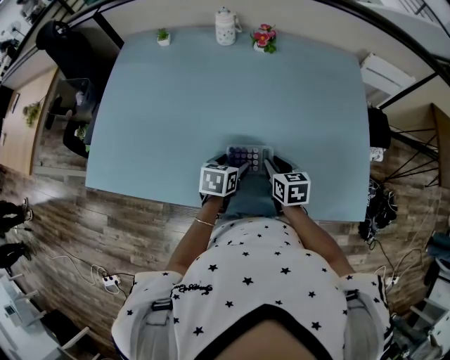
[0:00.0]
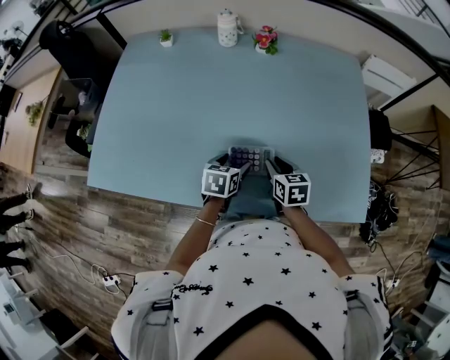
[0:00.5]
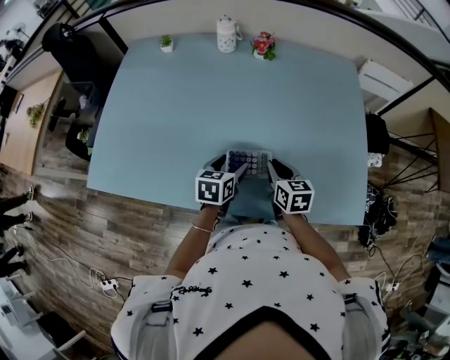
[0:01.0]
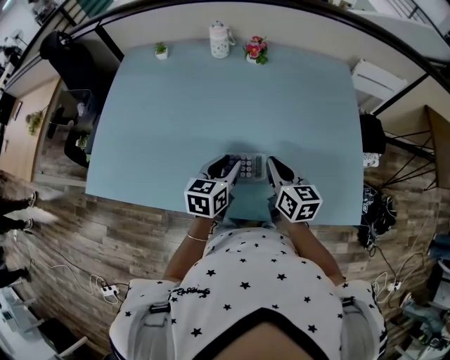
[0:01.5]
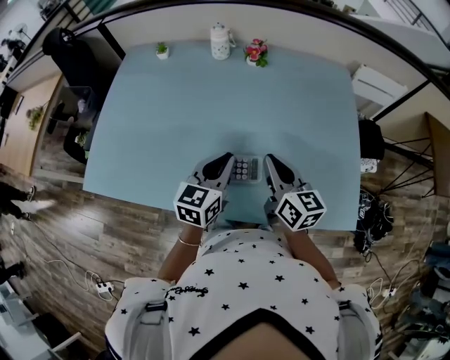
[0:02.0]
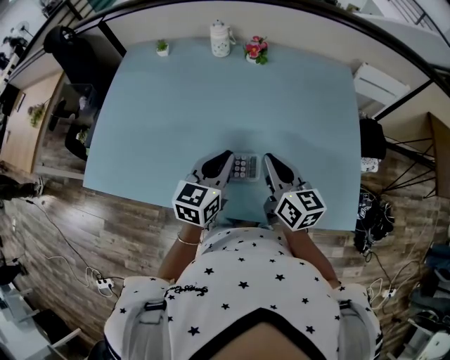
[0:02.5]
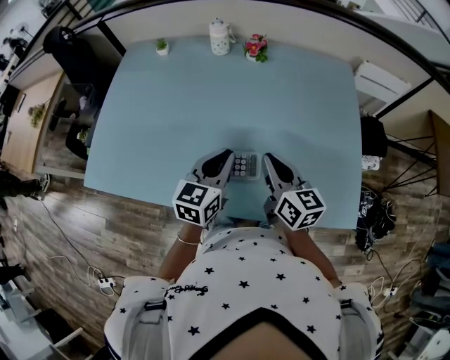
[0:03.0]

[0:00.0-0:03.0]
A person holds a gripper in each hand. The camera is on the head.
0:00.0 to 0:01.5: Both grippers move upward, some 10 cm. The right gripper changes its angle by about 20 degrees, and closes up. Meanwhile the left gripper changes its angle by some 20 degrees, and closes up.
0:01.5 to 0:03.0: The grippers both shift upward by about 5 cm. The left gripper closes up.

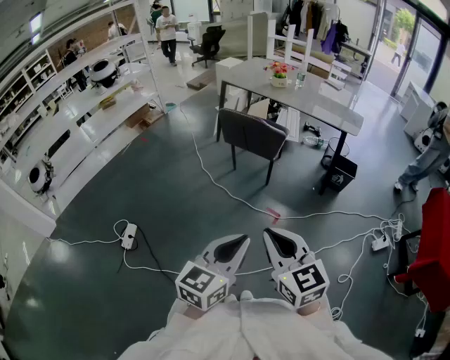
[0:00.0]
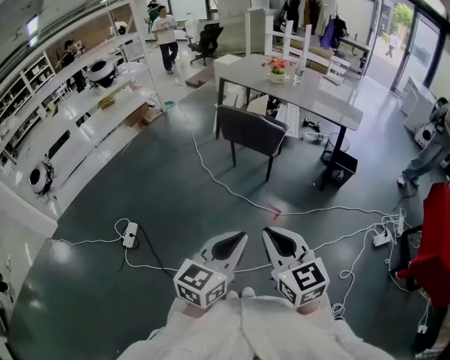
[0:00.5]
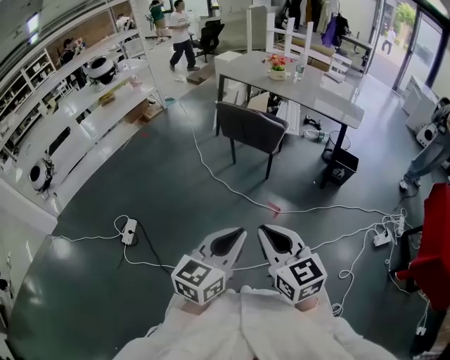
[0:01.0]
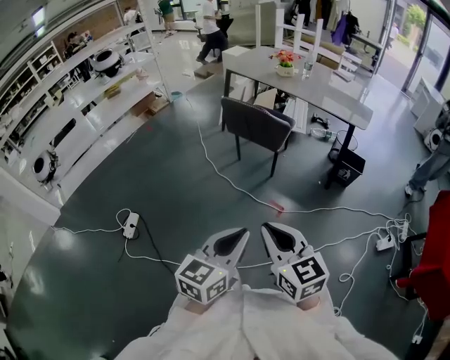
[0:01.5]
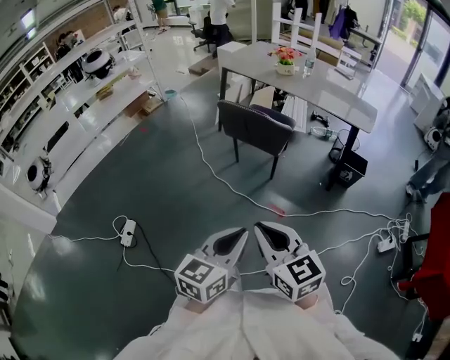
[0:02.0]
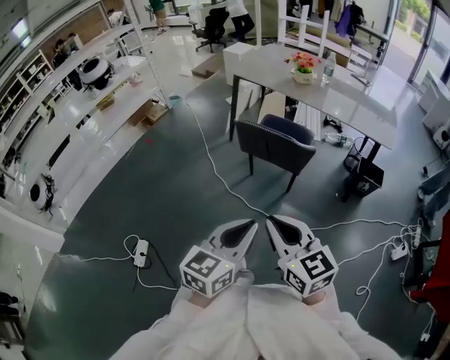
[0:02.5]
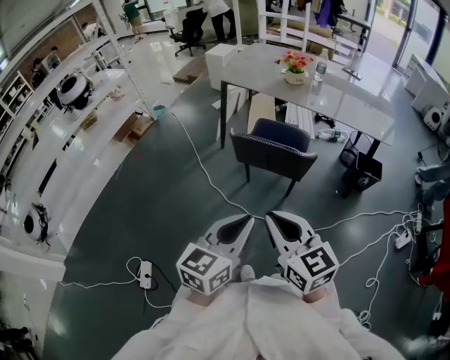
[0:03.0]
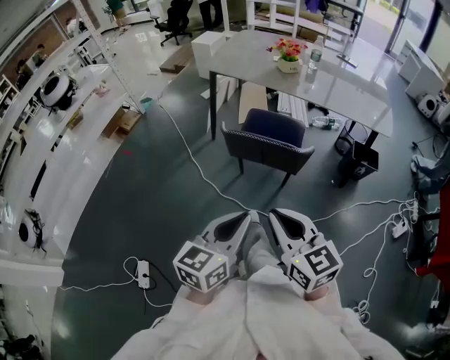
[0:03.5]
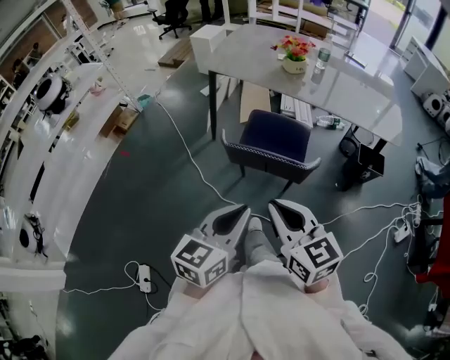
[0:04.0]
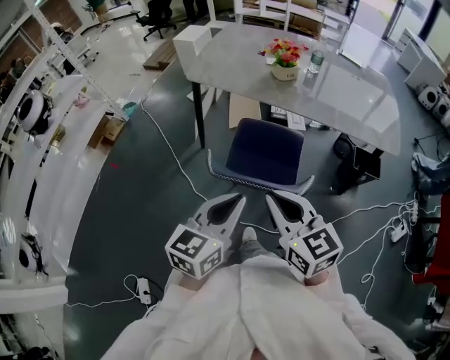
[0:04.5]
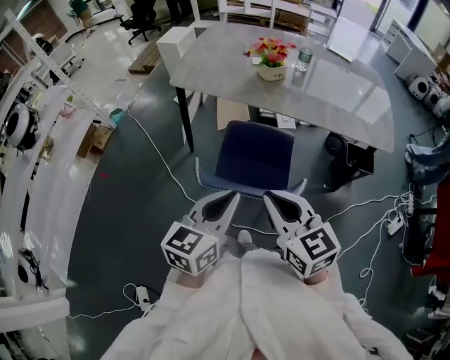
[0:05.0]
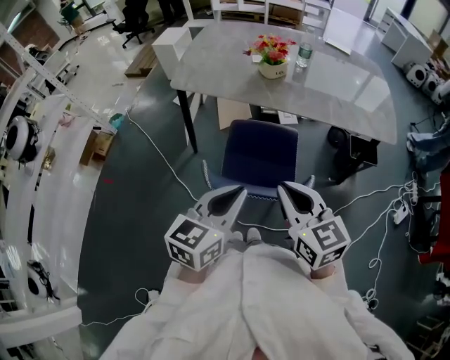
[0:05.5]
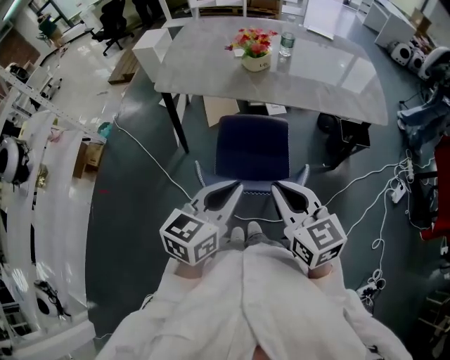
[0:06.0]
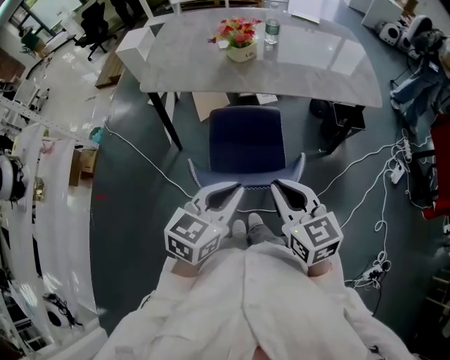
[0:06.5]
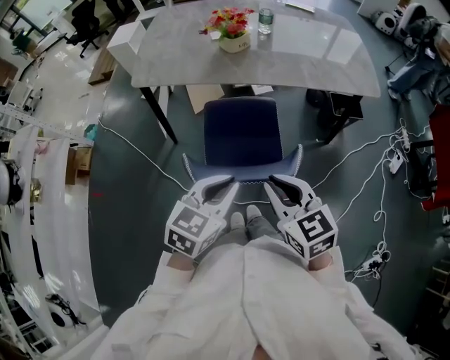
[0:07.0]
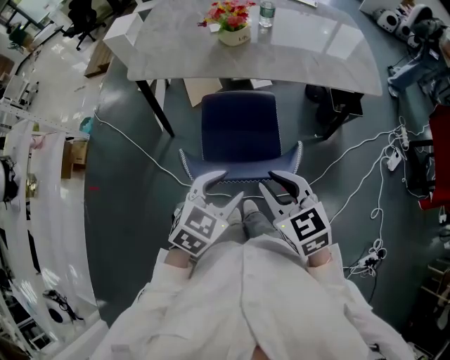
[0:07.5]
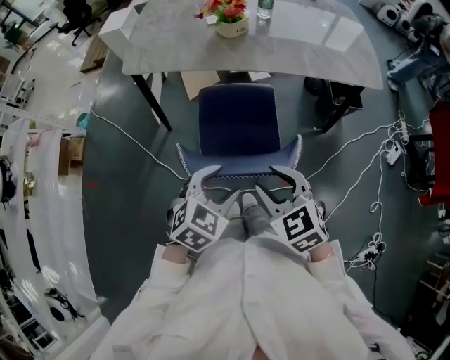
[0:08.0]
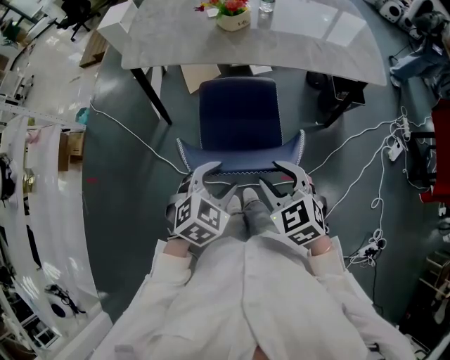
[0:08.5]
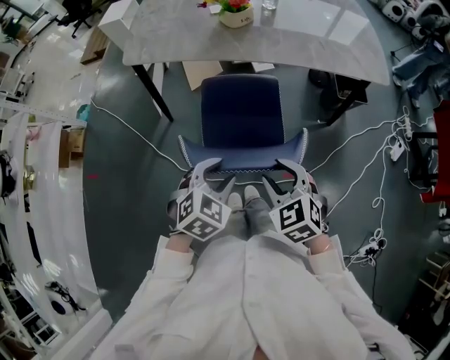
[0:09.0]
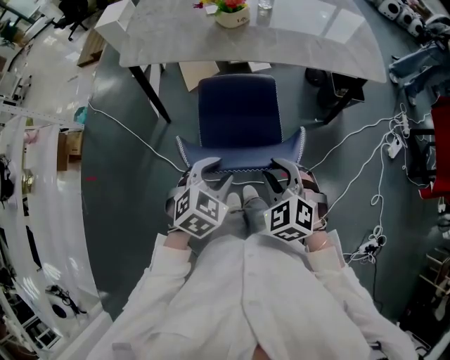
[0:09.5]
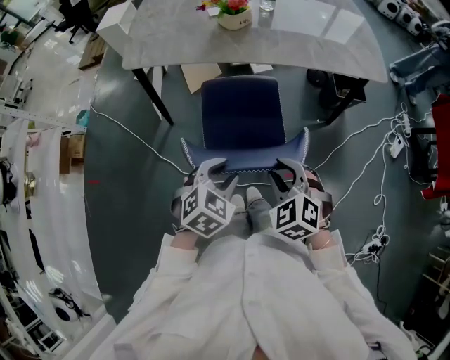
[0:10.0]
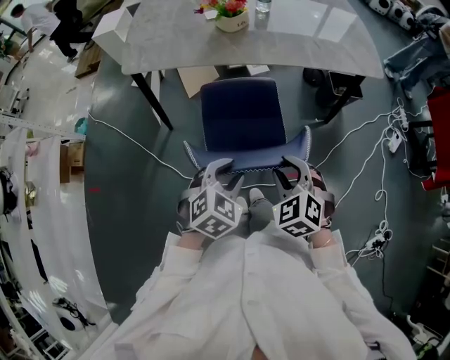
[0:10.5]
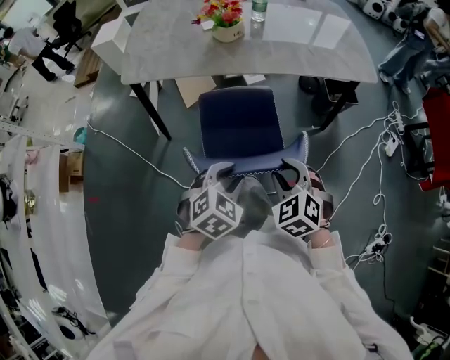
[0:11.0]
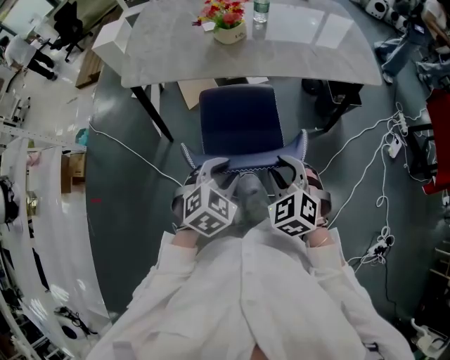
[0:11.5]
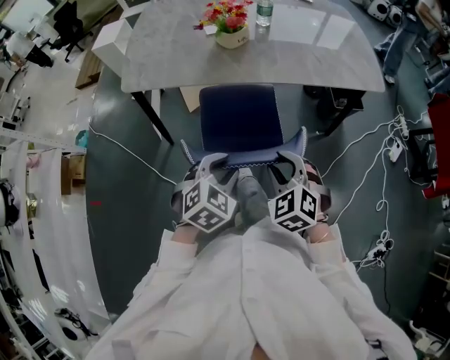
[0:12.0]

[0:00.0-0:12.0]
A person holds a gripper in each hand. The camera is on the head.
0:00.0 to 0:02.0: Both grippers move forward, about 10 cm.
0:02.0 to 0:04.0: Both grippers are carried forward, approximately 40 cm.
0:04.0 to 0:06.0: The grippers both shift forward by about 20 cm.
0:06.0 to 0:08.0: Both grippers travel together downward, about 10 cm. The right gripper turns by about 30 degrees, and opens, while the left gripper turns by roughly 40 degrees, and opens up.
0:08.0 to 0:10.0: The right gripper is displaced downward by approximately 5 cm, and rotates about 20 degrees.
0:10.0 to 0:12.0: The two grippers go approximately 5 cm forward.

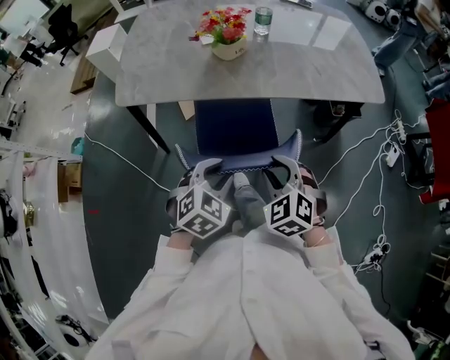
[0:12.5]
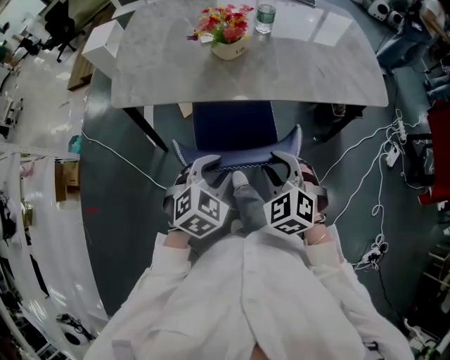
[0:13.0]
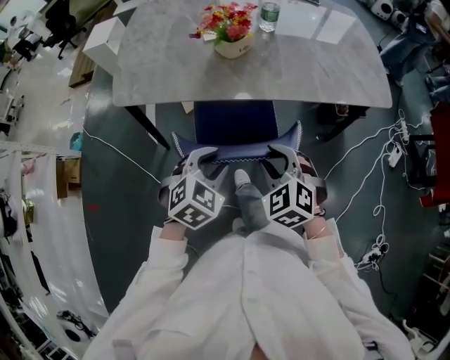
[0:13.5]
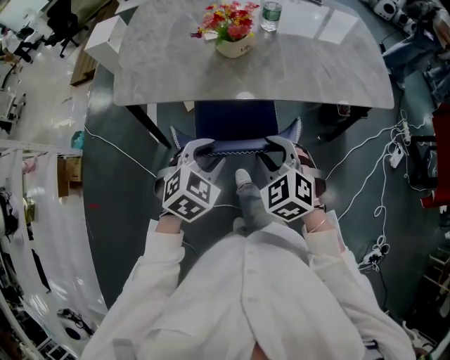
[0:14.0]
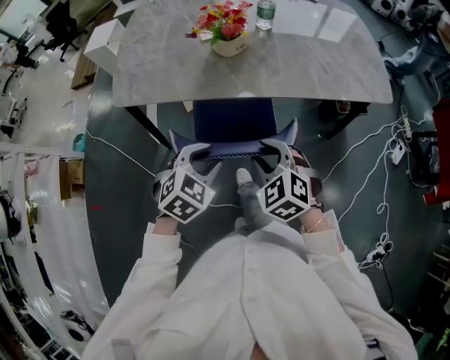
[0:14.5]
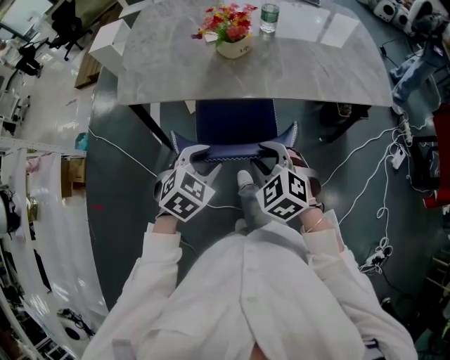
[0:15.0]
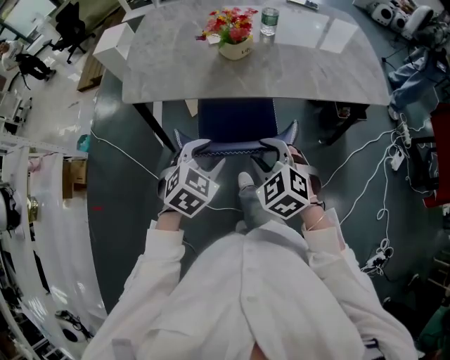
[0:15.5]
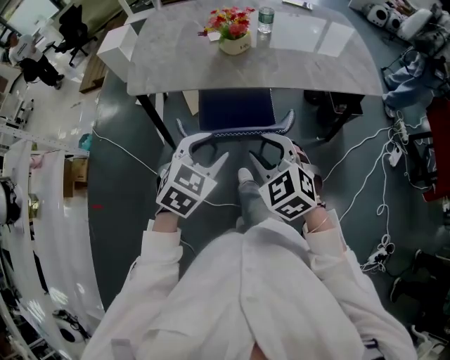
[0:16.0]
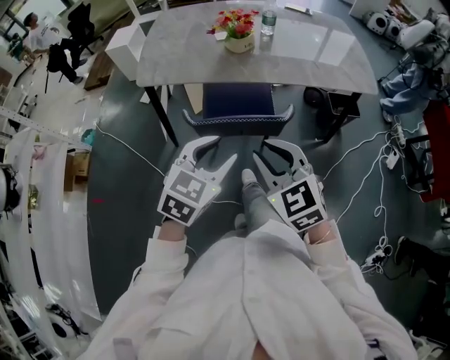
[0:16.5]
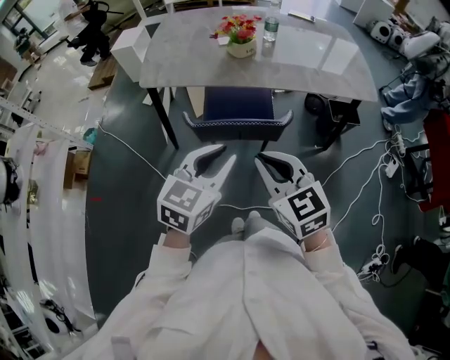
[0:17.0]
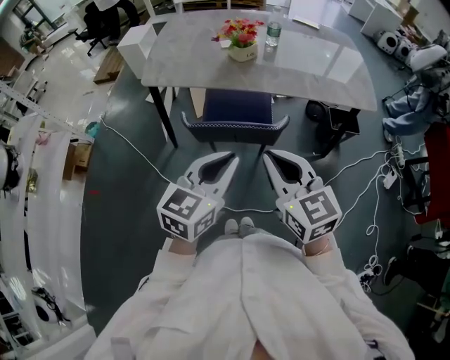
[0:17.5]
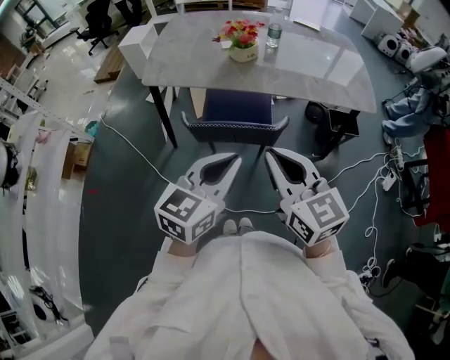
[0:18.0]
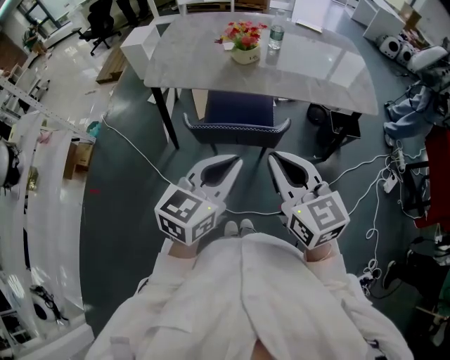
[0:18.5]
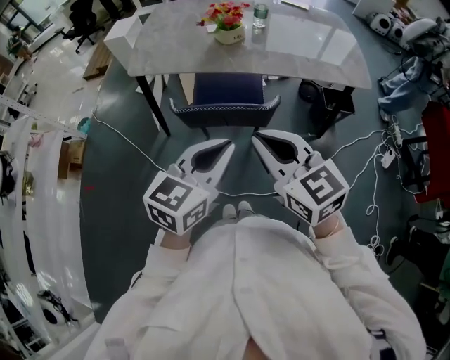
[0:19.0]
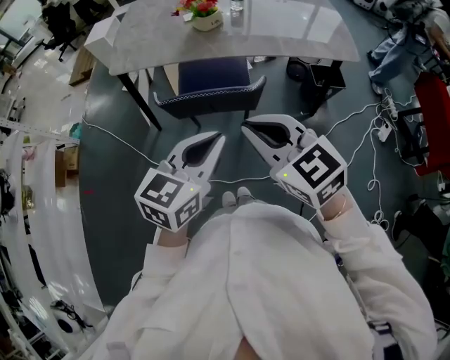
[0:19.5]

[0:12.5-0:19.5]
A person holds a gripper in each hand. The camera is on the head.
0:12.5 to 0:14.5: Both grippers move forward, some 5 cm.
0:14.5 to 0:16.0: The right gripper shifts approximately 10 cm backward and upward. Meanwhile the left gripper travels upward and backward by roughly 10 cm.
0:16.0 to 0:17.5: The right gripper is displaced upward and backward by about 15 cm, swivels some 30 degrees, and closes its fingers. The left gripper moves backward, upward and to the right, roughly 15 cm, swivels approximately 30 degrees, and closes its fingers.
0:17.5 to 0:19.5: There are only small adjustments of the grippers.

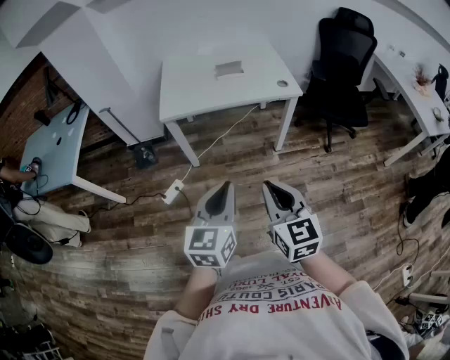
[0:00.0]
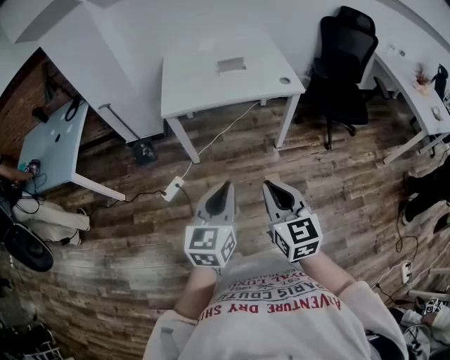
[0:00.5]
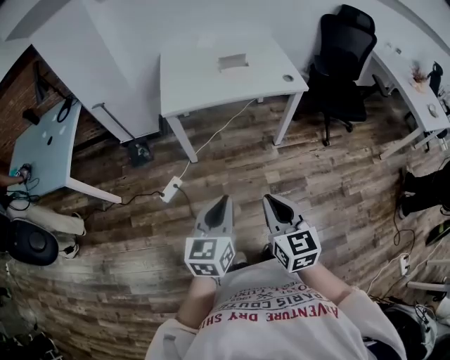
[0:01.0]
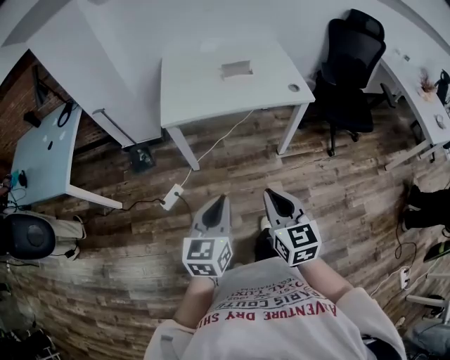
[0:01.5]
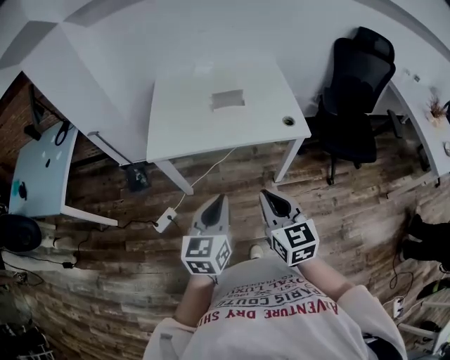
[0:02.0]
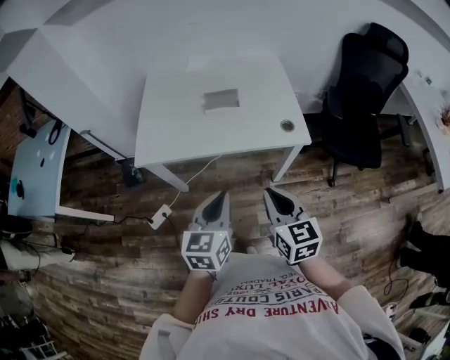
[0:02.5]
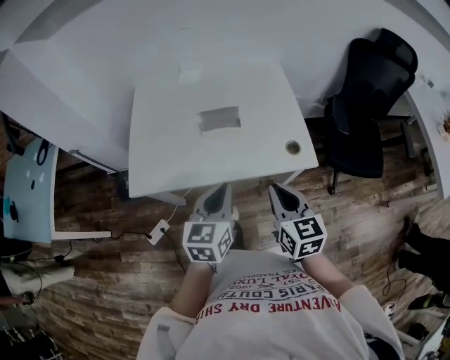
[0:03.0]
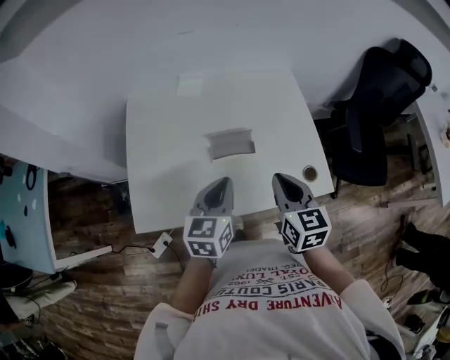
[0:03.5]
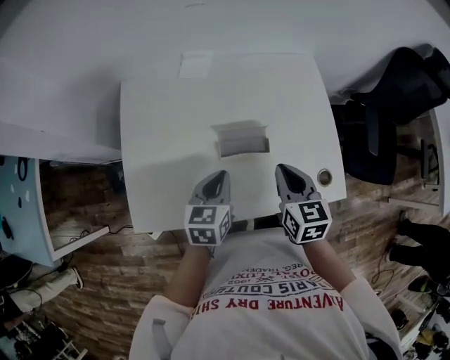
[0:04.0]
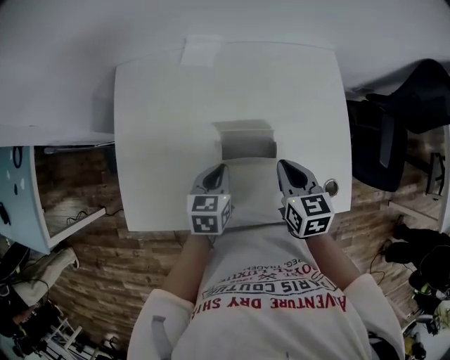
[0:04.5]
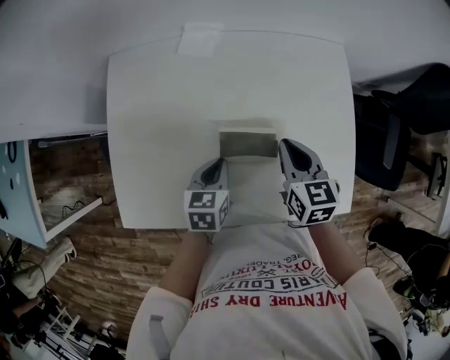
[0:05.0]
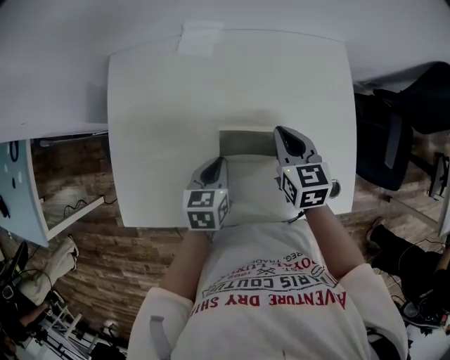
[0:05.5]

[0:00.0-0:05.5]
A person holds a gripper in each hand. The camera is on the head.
0:00.0 to 0:02.0: The two grippers go approximately 25 cm forward.
0:02.0 to 0:03.5: Both grippers move forward, some 40 cm.
0:03.5 to 0:05.5: The left gripper travels downward and forward by about 20 cm, and swivels some 20 degrees. Meanwhile the right gripper shifts some 25 cm forward and downward.
